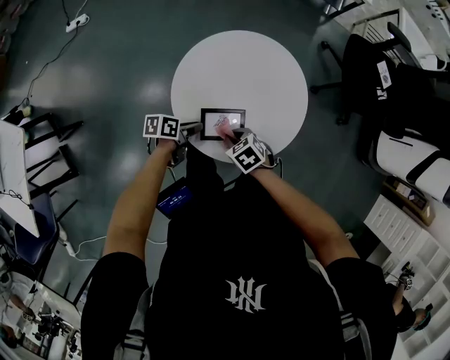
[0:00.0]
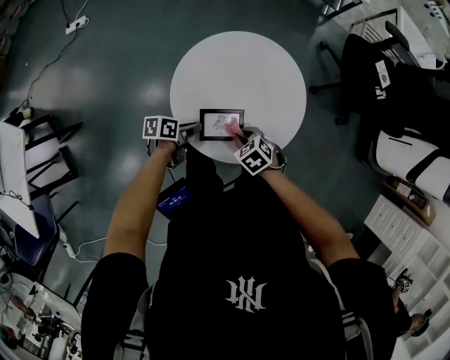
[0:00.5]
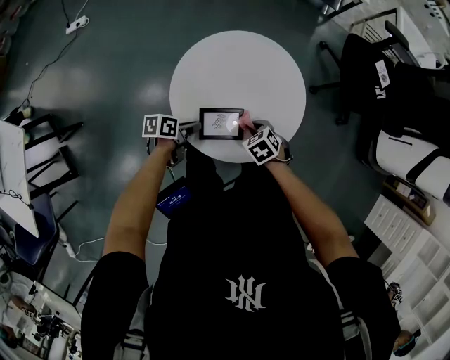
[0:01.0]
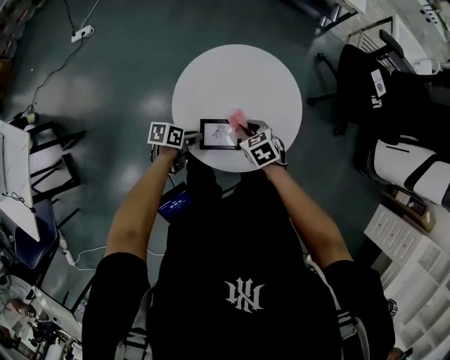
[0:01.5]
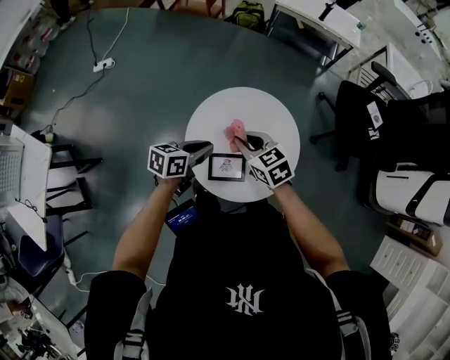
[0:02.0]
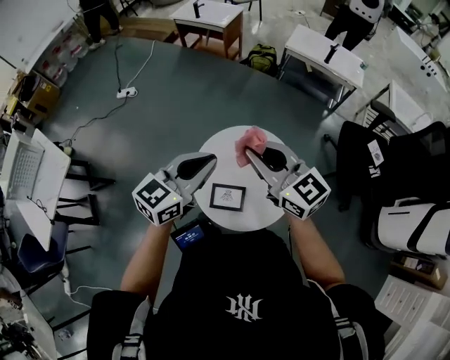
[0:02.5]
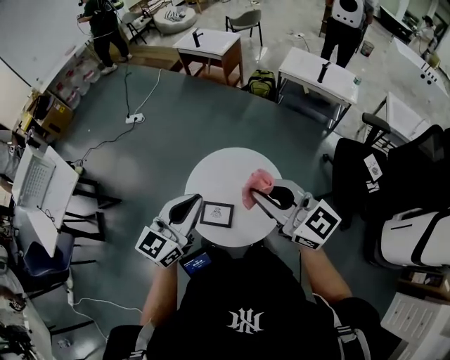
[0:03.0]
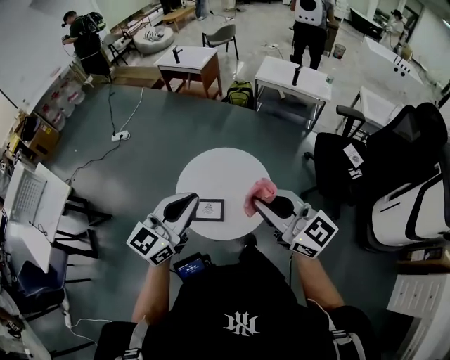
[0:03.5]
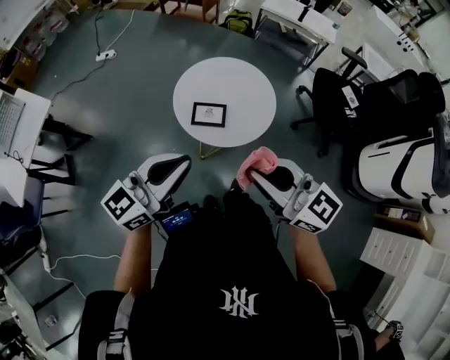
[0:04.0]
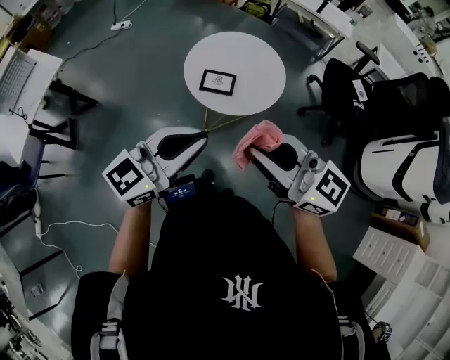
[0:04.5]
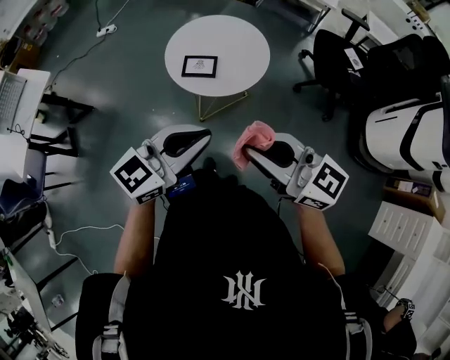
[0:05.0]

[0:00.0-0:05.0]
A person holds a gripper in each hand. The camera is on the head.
0:00.0 to 0:02.5: The grippers both shift upward by approximately 50 cm. The right gripper tips its fingers upward by approximately 60 degrees. The left gripper rotates approximately 70 degrees.
0:02.5 to 0:05.0: The two grippers travel together, backward, roughly 50 cm.

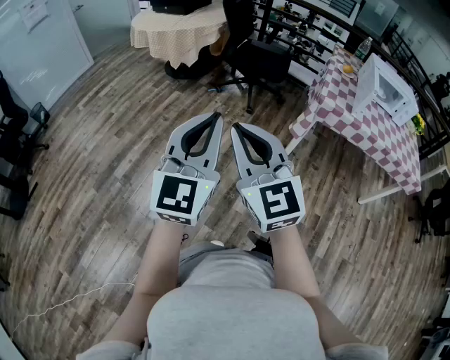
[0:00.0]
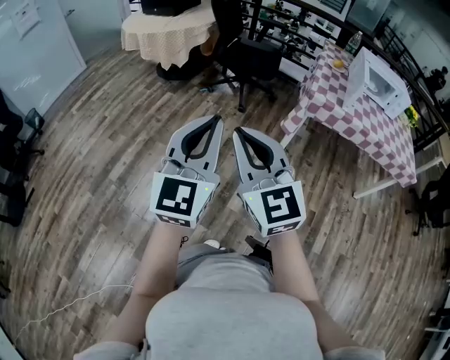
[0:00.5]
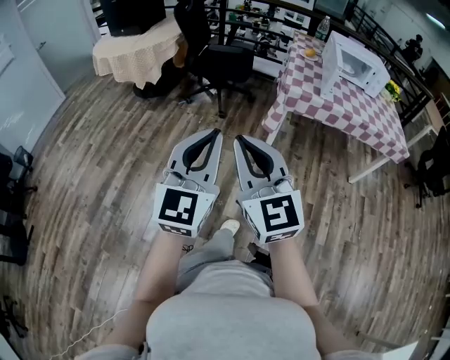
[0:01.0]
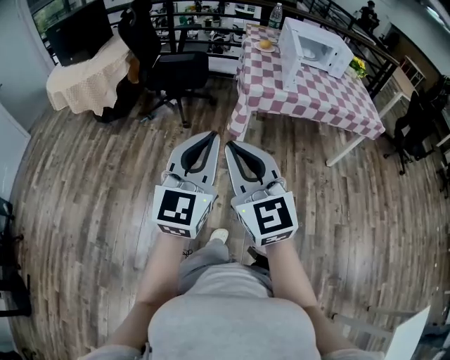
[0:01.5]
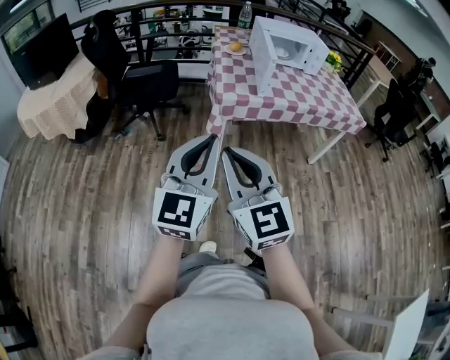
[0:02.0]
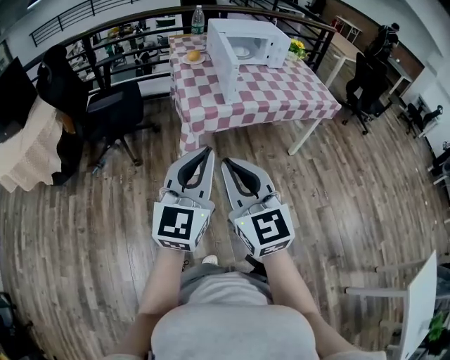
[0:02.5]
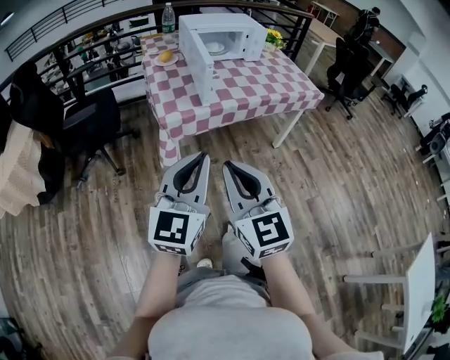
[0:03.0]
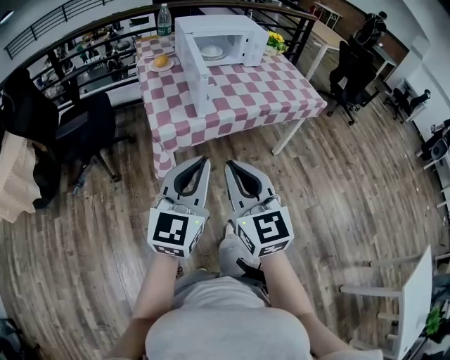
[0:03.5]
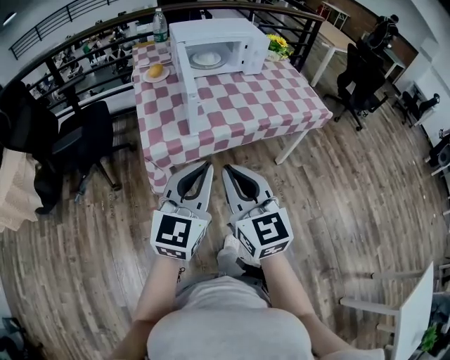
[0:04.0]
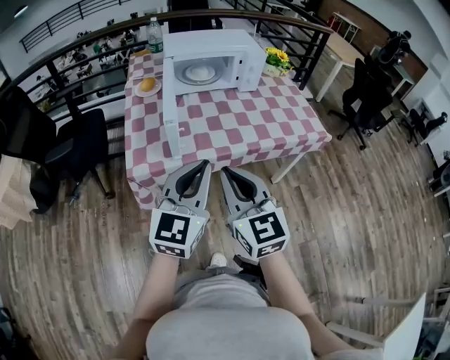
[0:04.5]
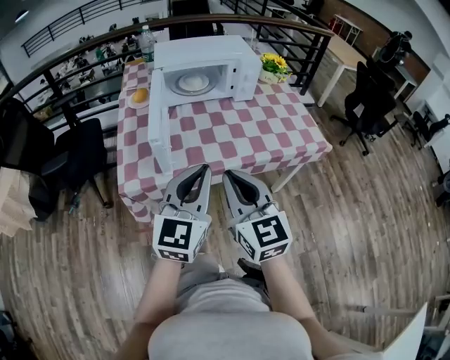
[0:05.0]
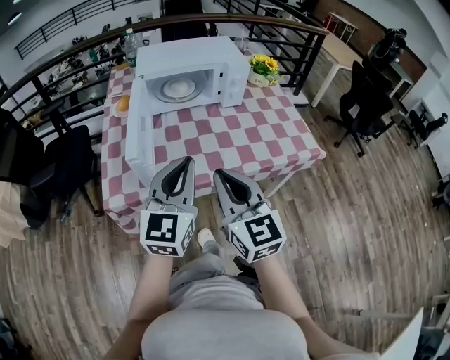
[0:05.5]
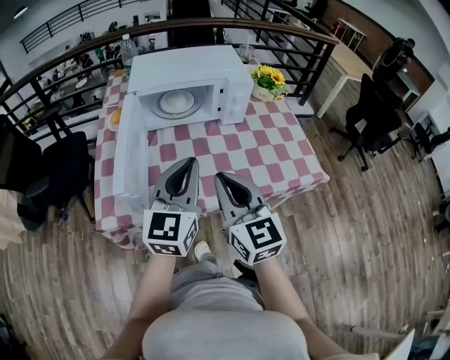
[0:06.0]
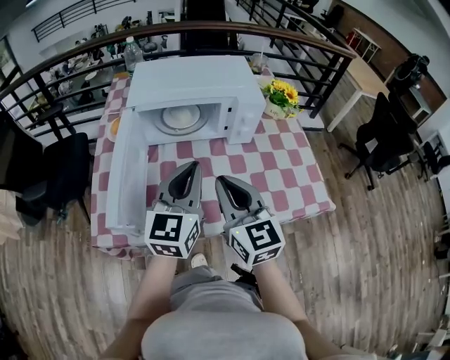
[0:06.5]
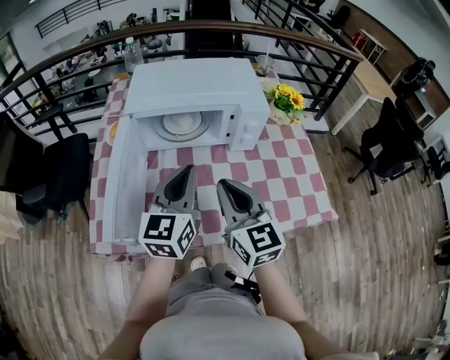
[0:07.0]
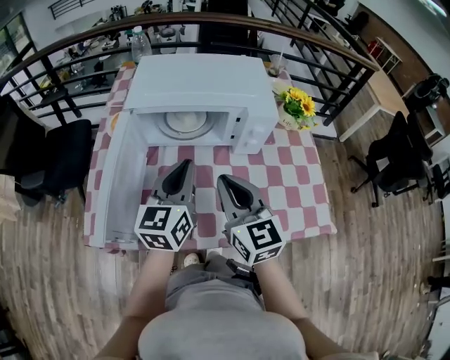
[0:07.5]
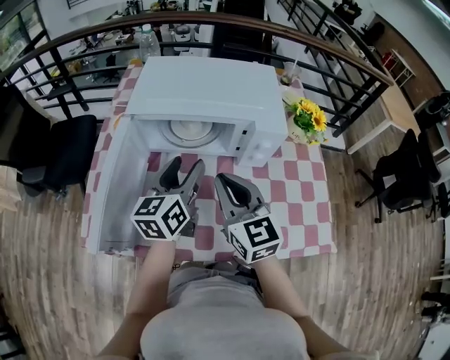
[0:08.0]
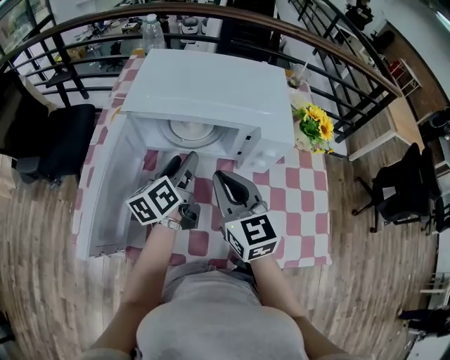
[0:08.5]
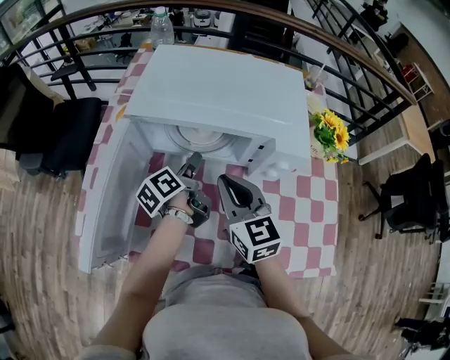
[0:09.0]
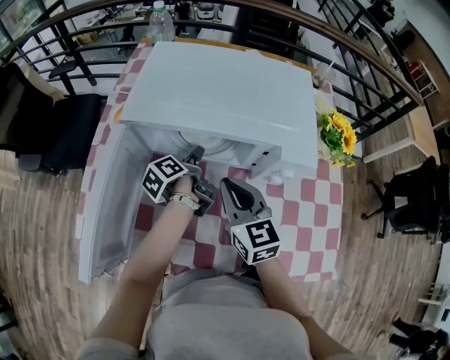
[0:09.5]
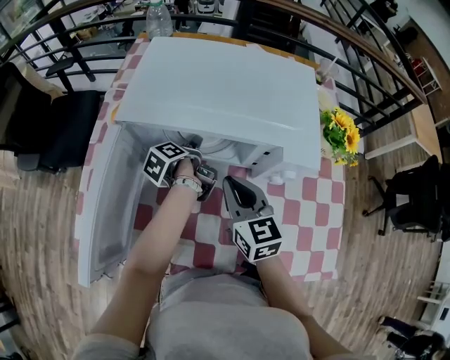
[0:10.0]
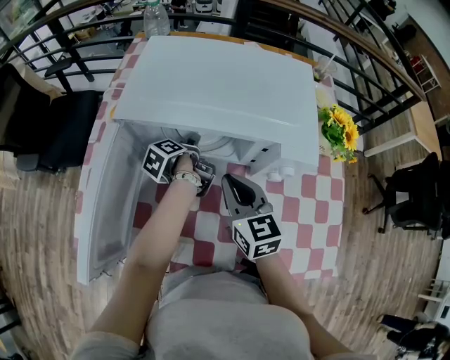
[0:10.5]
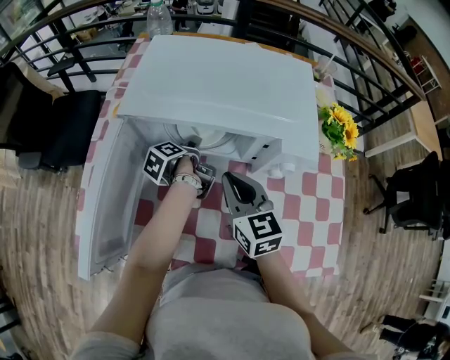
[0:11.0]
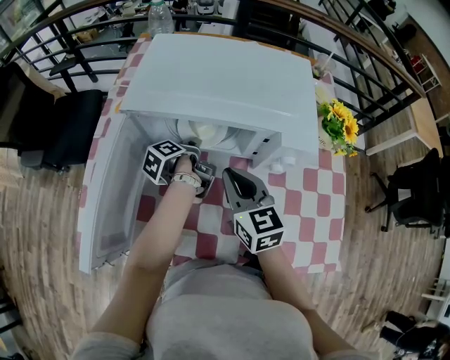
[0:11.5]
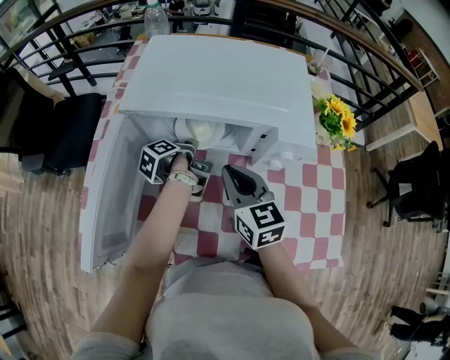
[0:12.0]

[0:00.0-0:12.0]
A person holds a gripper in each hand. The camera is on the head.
0:00.0 to 0:02.0: The right gripper ends up about 30 cm from where it was, and rotates roughly 30 degrees, while the left gripper ends up approximately 30 cm from where it was, and turns by roughly 30 degrees.
0:02.0 to 0:04.0: Both grippers move forward and to the right, about 35 cm.
0:04.0 to 0:06.0: The grippers both shift forward and to the right by some 35 cm.
0:06.0 to 0:08.0: Both grippers move forward, some 20 cm. The left gripper turns by approximately 30 degrees, and opens up.
0:08.0 to 0:10.0: The right gripper moves downward and forward, some 15 cm. Meanwhile the left gripper travels downward and forward by approximately 25 cm, and rolls counterclockwise, seen from behind, by about 60 degrees.
0:10.0 to 0:12.0: The left gripper closes up.

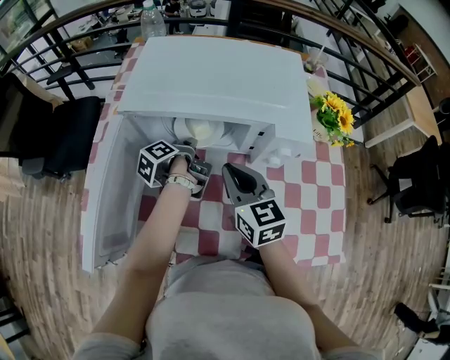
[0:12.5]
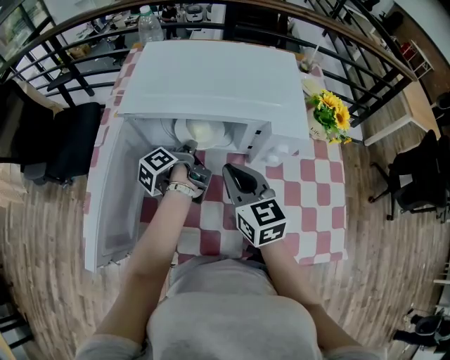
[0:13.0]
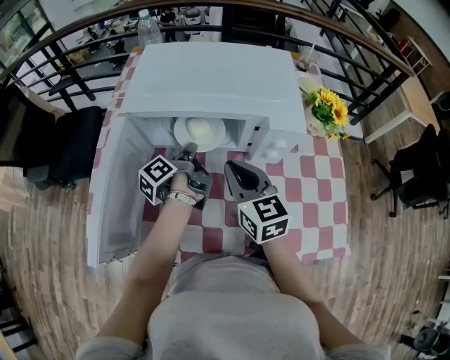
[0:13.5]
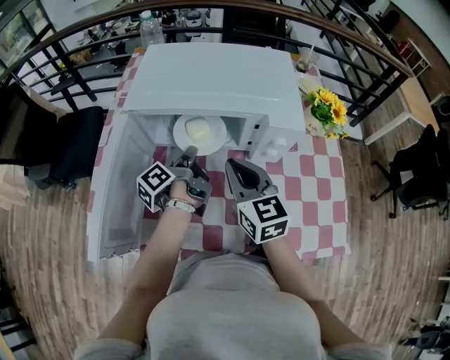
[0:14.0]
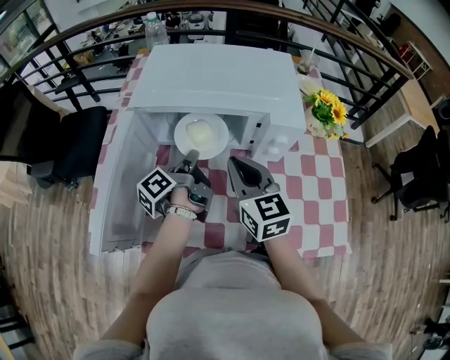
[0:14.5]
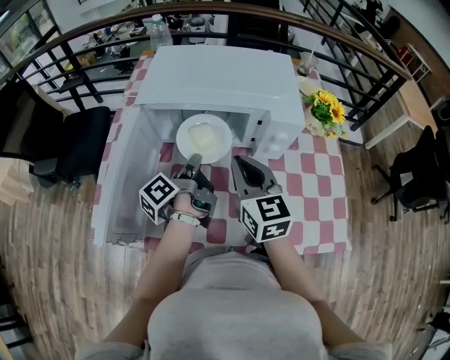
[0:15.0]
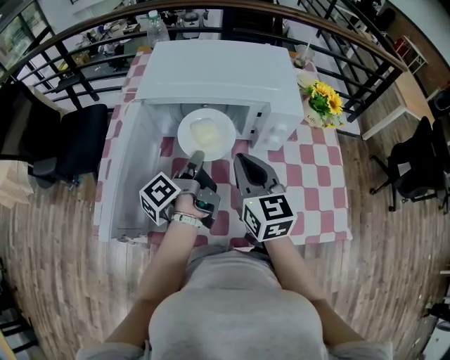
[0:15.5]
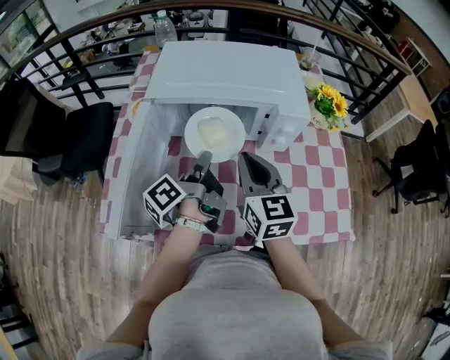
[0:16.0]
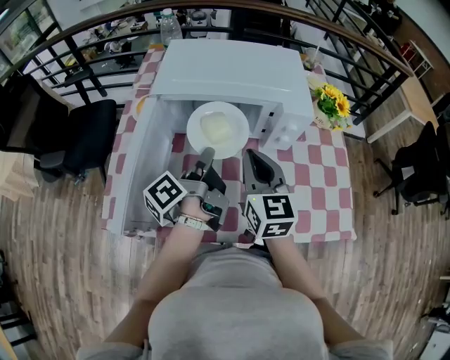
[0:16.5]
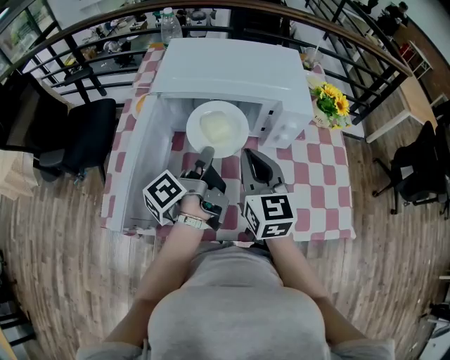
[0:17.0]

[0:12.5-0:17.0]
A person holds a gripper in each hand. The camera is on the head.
0:12.5 to 0:14.5: The left gripper shifts some 10 cm backward and upward, and swivels about 20 degrees.
0:14.5 to 0:17.0: The left gripper travels upward and backward by approximately 10 cm. Meanwhile the right gripper ends up roughly 5 cm from where it was.

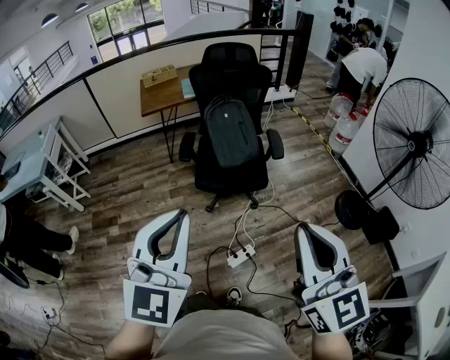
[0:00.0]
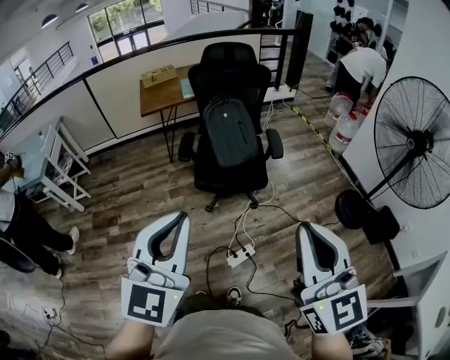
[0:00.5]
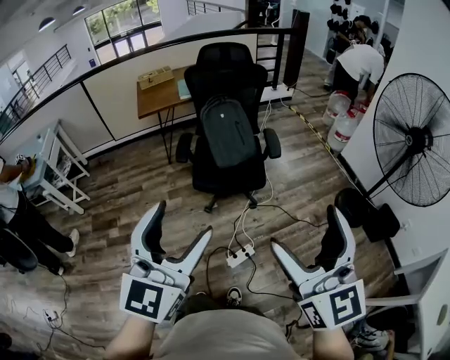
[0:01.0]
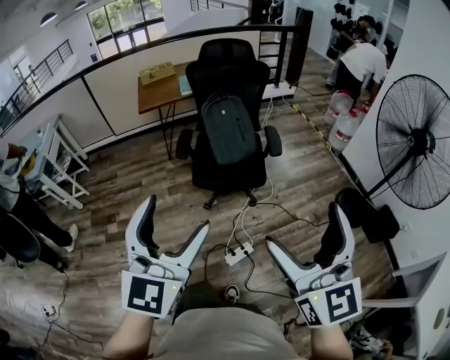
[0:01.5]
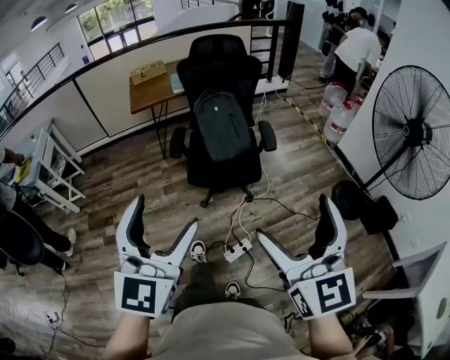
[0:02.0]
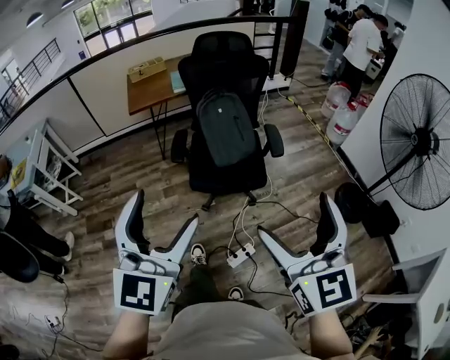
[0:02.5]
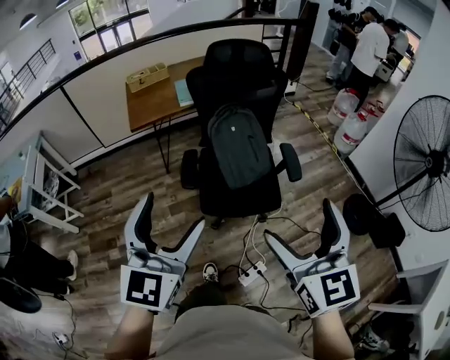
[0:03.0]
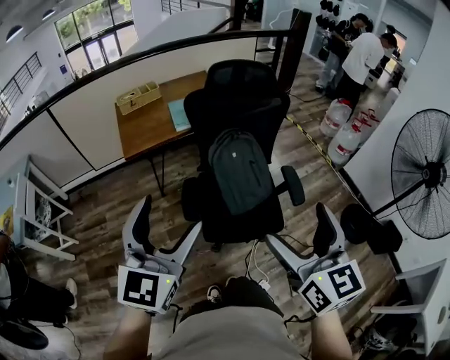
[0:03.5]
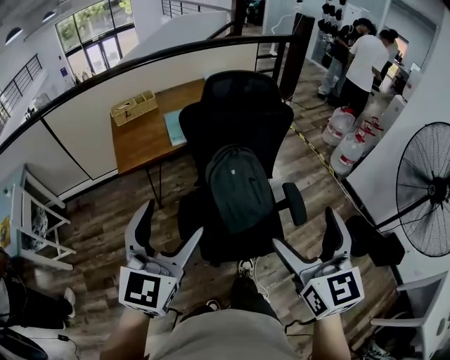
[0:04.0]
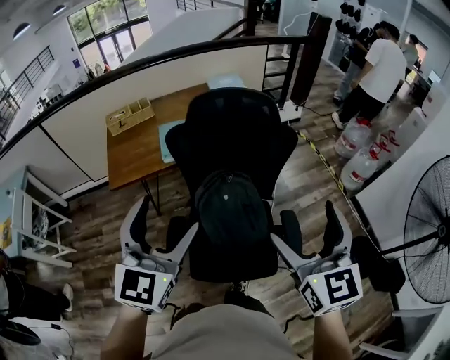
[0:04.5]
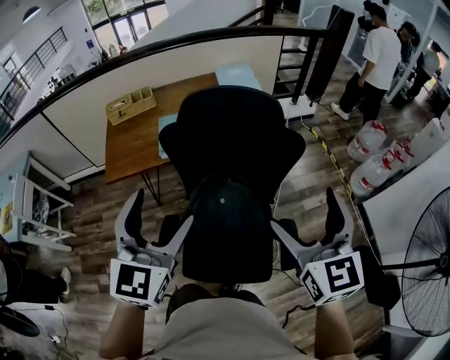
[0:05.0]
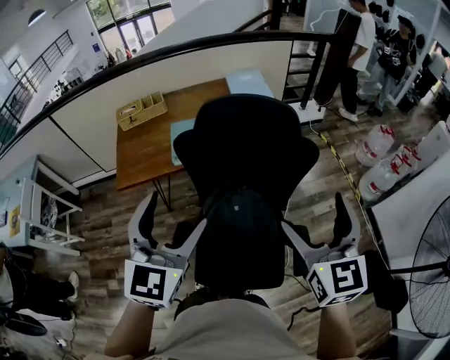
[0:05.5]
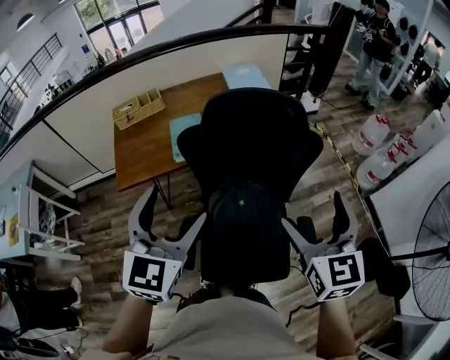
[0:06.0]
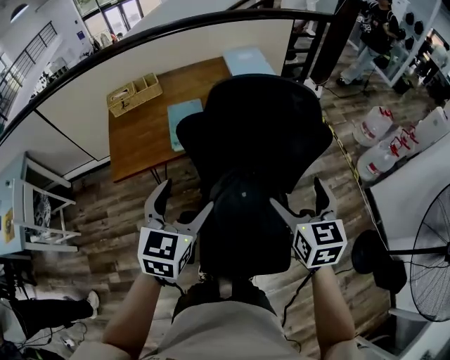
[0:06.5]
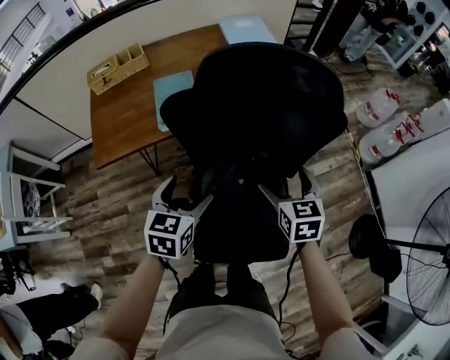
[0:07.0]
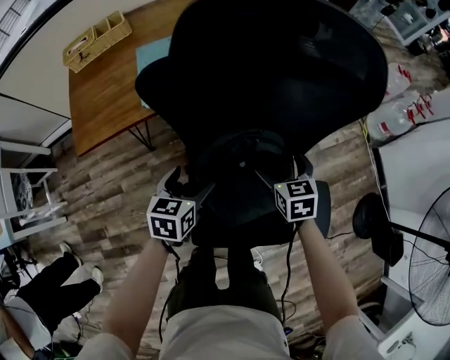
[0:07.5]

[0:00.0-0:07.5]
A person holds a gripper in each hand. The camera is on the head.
0:00.0 to 0:02.0: The left gripper opens; the right gripper opens.
0:02.0 to 0:04.0: The pair of grippers is taken forward, approximately 50 cm.
0:04.0 to 0:05.5: Both grippers move forward, some 30 cm.
0:05.5 to 0:07.5: Both grippers move downward, approximately 40 cm. The left gripper tips its fingers downward by approximately 30 degrees; the right gripper angles its fingers downward, by some 30 degrees.
